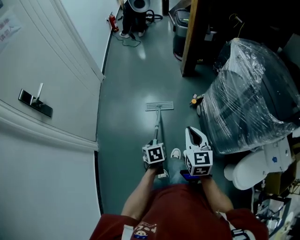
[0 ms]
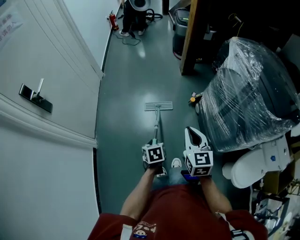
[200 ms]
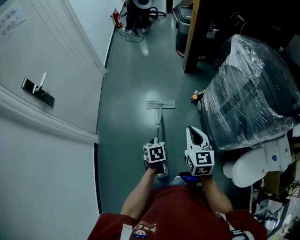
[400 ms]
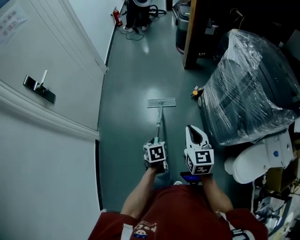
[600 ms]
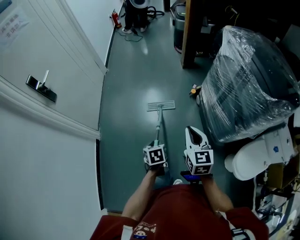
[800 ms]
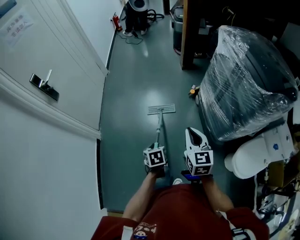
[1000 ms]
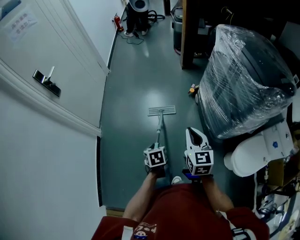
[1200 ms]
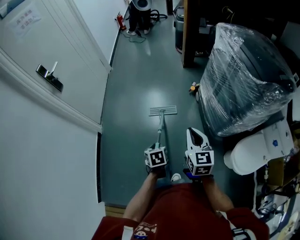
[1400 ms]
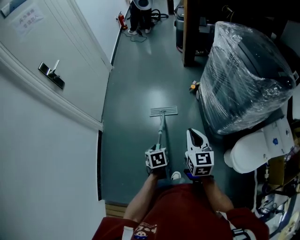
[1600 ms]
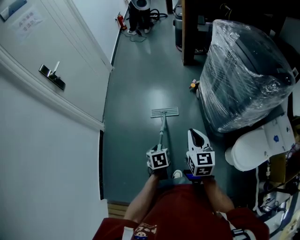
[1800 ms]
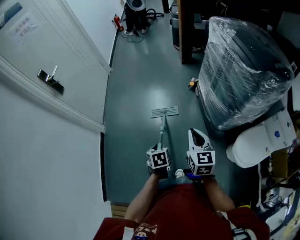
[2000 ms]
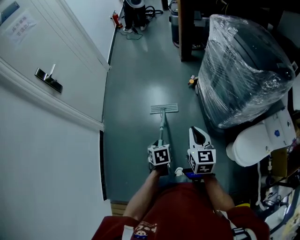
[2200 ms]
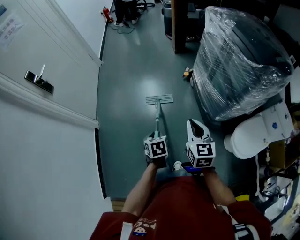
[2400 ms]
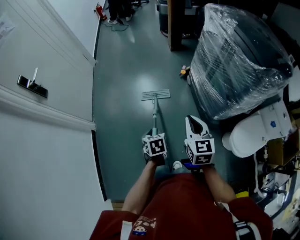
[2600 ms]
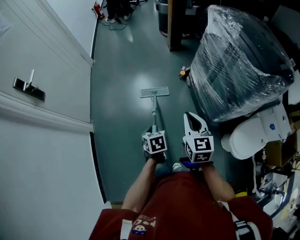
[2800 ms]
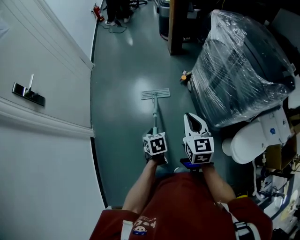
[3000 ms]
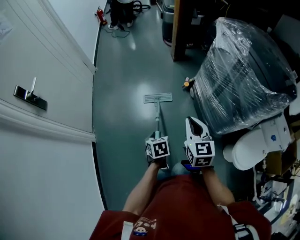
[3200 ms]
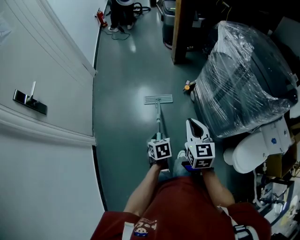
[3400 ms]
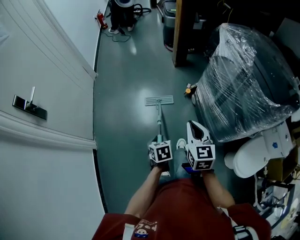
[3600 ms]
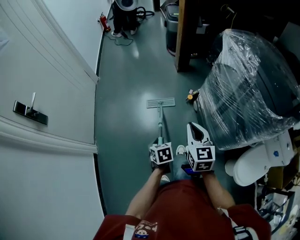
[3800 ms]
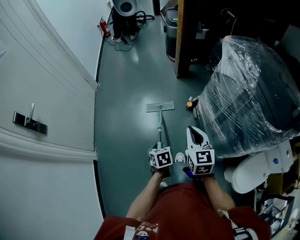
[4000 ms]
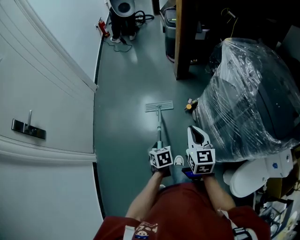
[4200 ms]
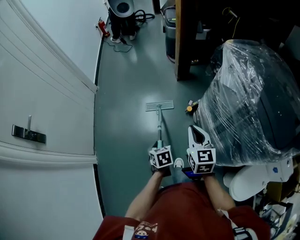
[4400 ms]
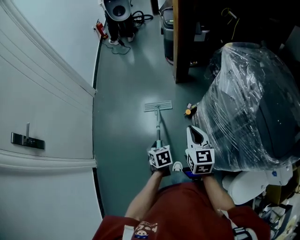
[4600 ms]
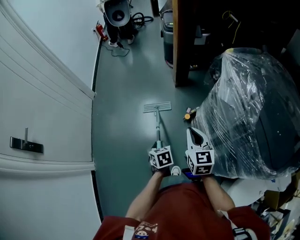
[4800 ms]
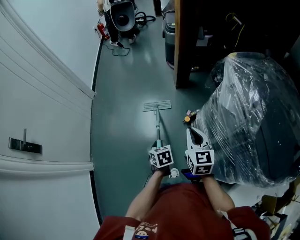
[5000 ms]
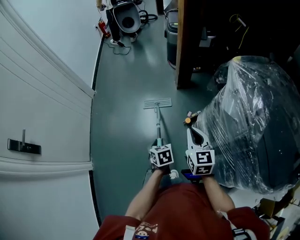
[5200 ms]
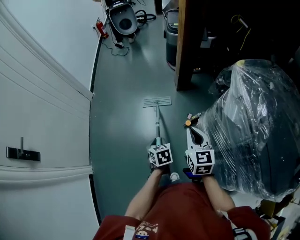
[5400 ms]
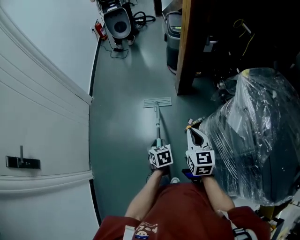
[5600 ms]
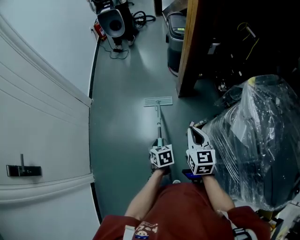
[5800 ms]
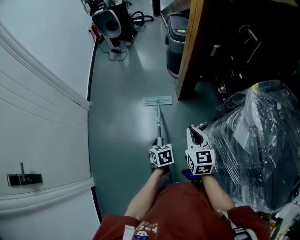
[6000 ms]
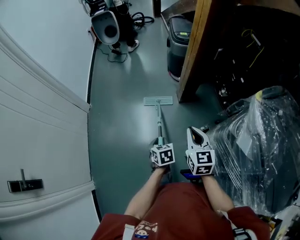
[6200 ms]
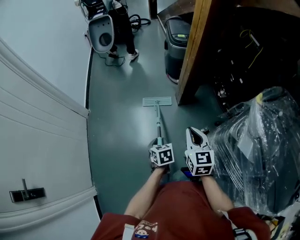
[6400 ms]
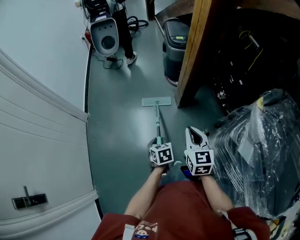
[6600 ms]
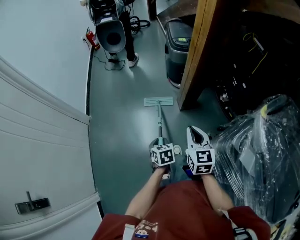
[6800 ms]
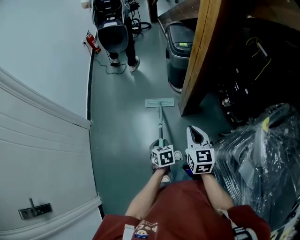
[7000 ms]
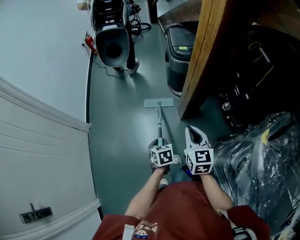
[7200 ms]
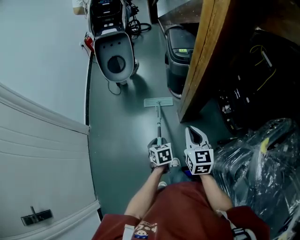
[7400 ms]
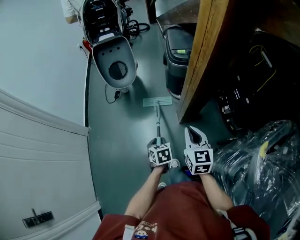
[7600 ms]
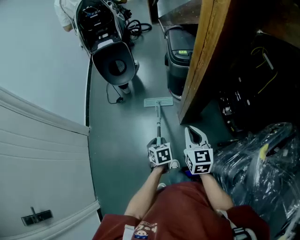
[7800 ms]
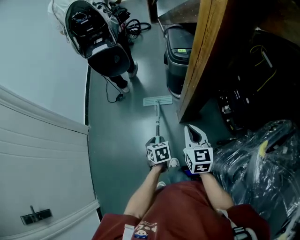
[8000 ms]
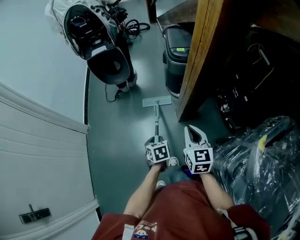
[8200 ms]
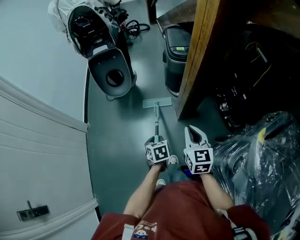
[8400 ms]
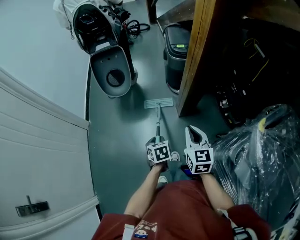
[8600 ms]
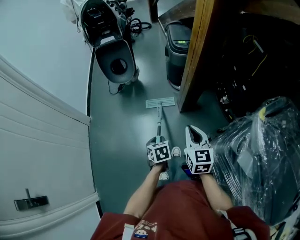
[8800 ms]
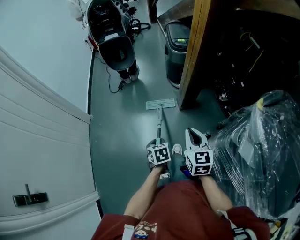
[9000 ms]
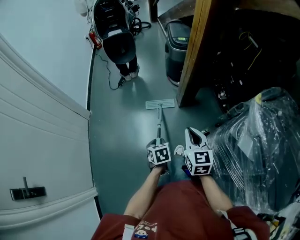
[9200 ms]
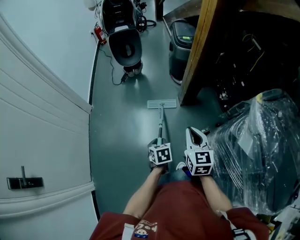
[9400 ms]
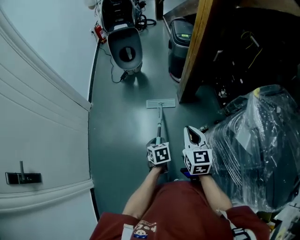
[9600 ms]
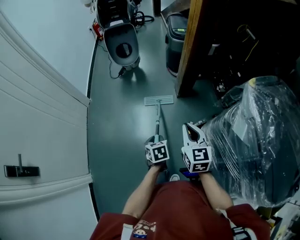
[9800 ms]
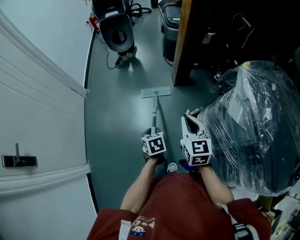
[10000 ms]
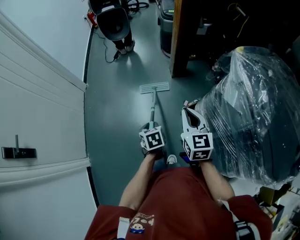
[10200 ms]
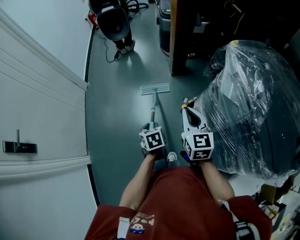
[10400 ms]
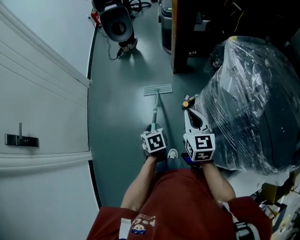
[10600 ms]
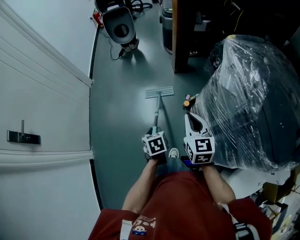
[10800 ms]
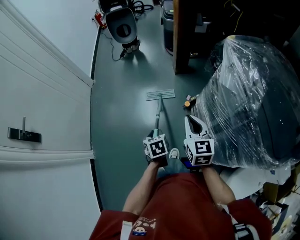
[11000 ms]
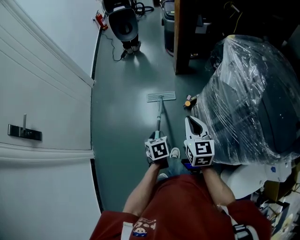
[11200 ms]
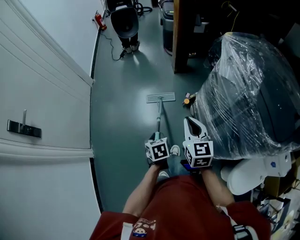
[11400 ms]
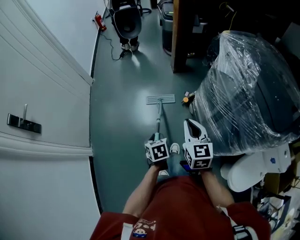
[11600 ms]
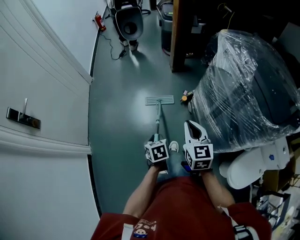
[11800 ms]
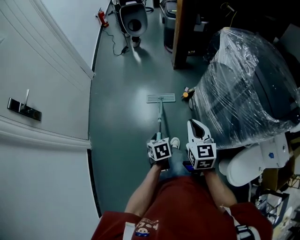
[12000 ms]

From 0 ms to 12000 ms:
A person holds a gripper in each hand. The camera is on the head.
From 0 ms to 1600 ms: Both grippers move backward, about 30 cm.
From 1600 ms to 3000 ms: The grippers both shift forward by some 20 cm.
From 3000 ms to 4400 ms: Both grippers travel together forward, about 30 cm.
From 4400 ms to 6000 ms: Both grippers move forward, approximately 35 cm.
From 6000 ms to 7600 ms: Both grippers travel together forward, roughly 35 cm.
From 7600 ms to 9000 ms: Both grippers move backward, approximately 25 cm.
From 9000 ms to 10400 ms: Both grippers move backward, about 30 cm.
From 10400 ms to 12000 ms: The two grippers go approximately 30 cm backward.

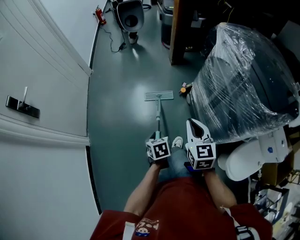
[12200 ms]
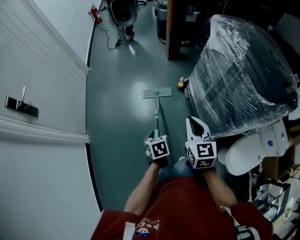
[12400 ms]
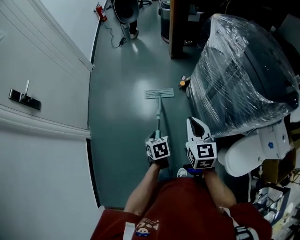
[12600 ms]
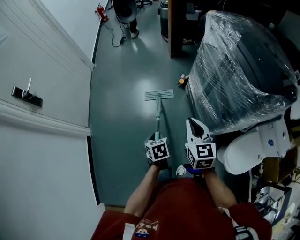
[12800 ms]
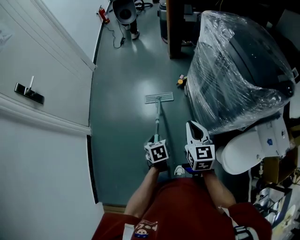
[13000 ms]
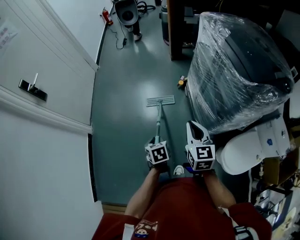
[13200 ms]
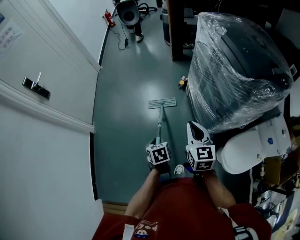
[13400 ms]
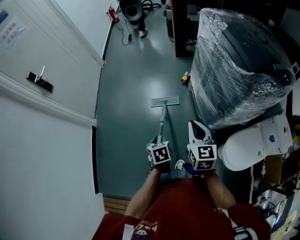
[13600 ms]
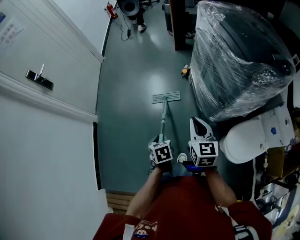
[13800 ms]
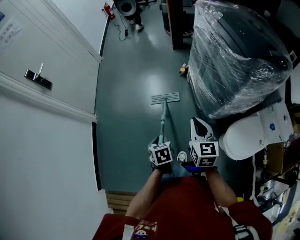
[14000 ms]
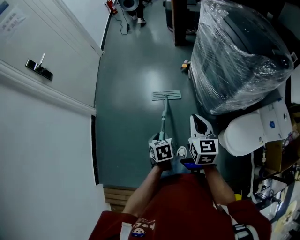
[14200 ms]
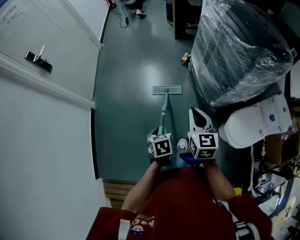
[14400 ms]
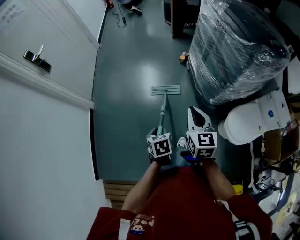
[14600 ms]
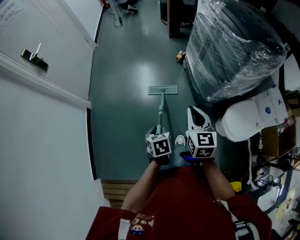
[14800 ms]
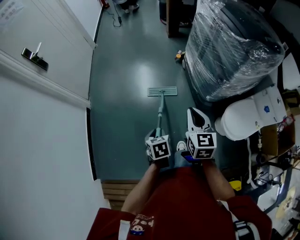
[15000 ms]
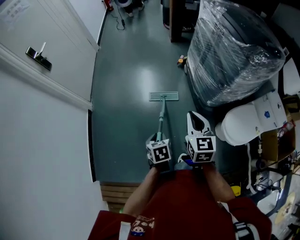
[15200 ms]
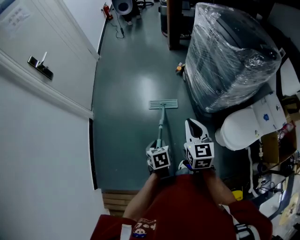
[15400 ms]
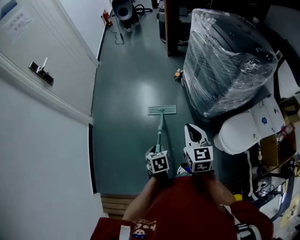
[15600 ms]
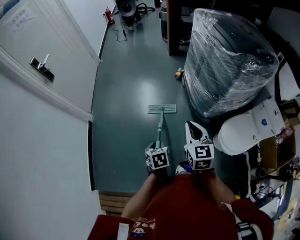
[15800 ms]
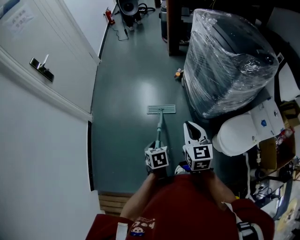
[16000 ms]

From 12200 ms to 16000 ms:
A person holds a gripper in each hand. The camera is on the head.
From 12200 ms to 13400 ms: The grippers both shift backward and to the right by about 25 cm.
From 13400 ms to 14800 ms: Both grippers travel together backward and to the left, about 20 cm.
From 14800 ms to 16000 ms: The right gripper shifts by about 5 cm. Meanwhile the left gripper shifts by roughly 5 cm.

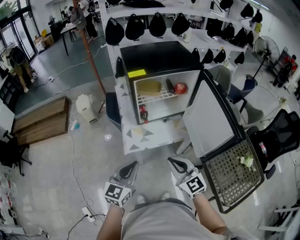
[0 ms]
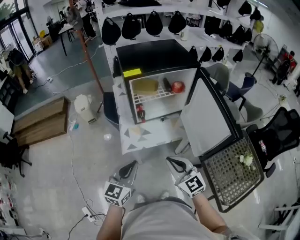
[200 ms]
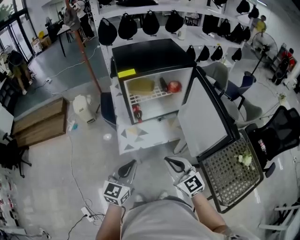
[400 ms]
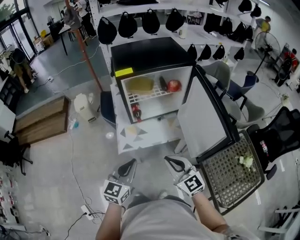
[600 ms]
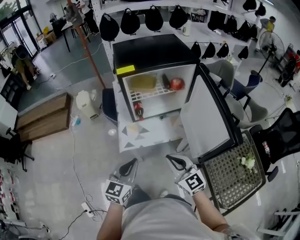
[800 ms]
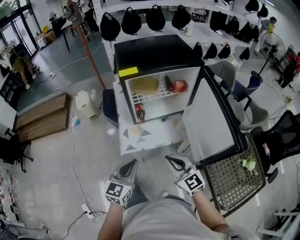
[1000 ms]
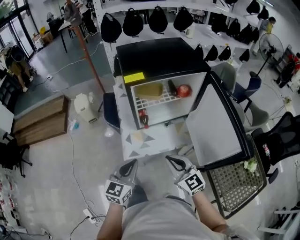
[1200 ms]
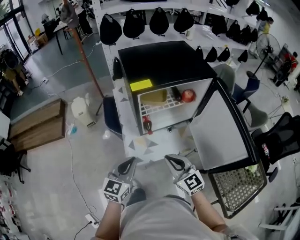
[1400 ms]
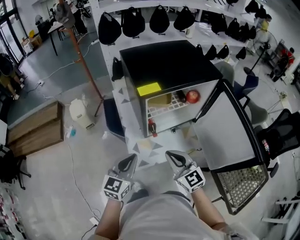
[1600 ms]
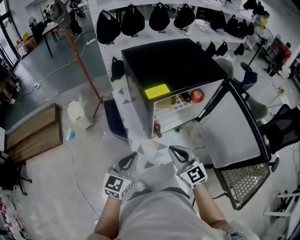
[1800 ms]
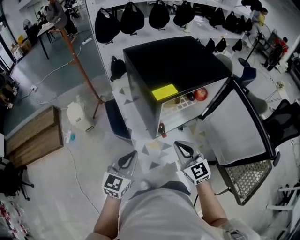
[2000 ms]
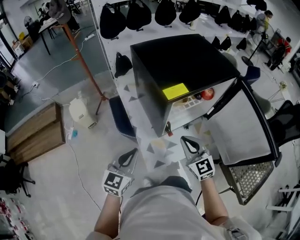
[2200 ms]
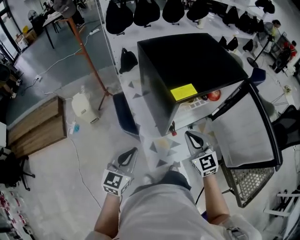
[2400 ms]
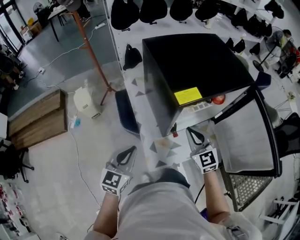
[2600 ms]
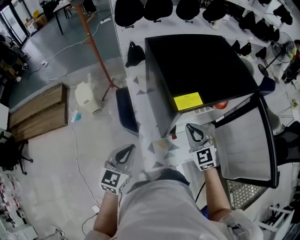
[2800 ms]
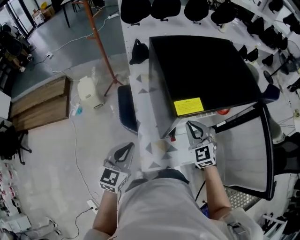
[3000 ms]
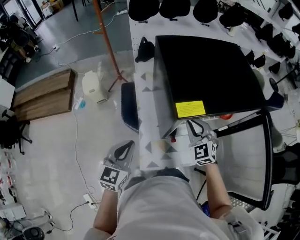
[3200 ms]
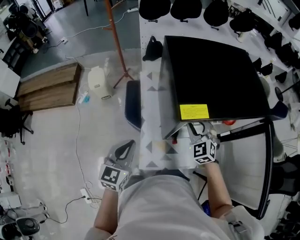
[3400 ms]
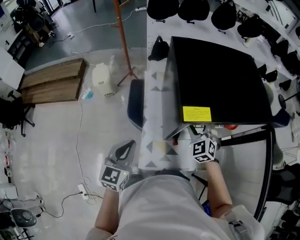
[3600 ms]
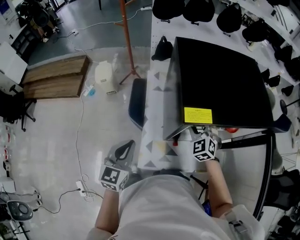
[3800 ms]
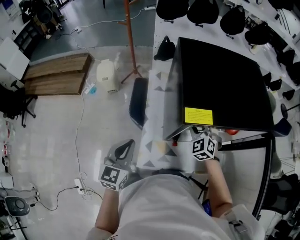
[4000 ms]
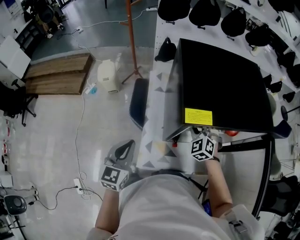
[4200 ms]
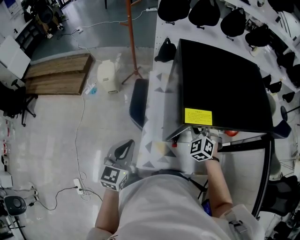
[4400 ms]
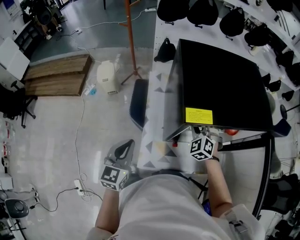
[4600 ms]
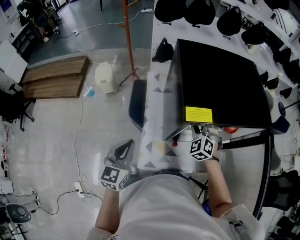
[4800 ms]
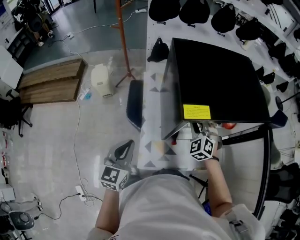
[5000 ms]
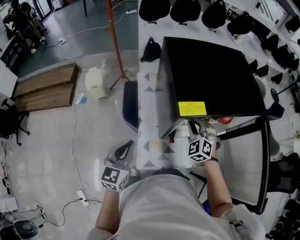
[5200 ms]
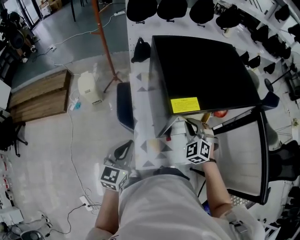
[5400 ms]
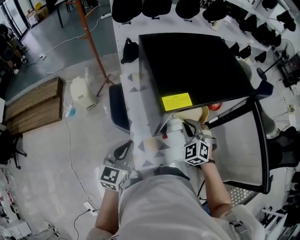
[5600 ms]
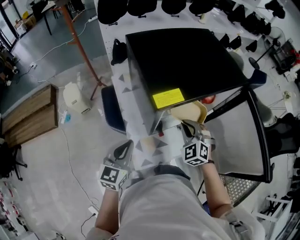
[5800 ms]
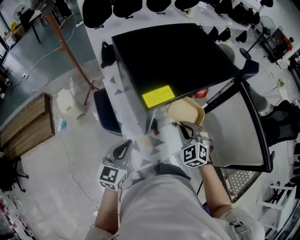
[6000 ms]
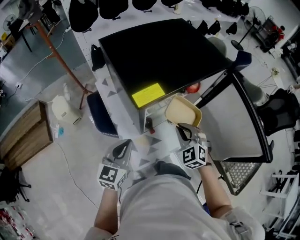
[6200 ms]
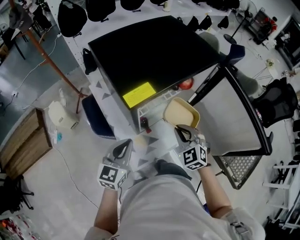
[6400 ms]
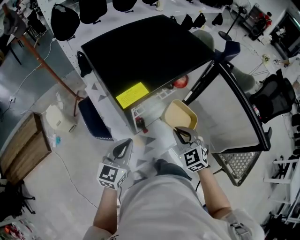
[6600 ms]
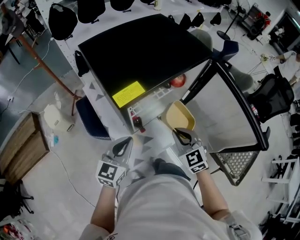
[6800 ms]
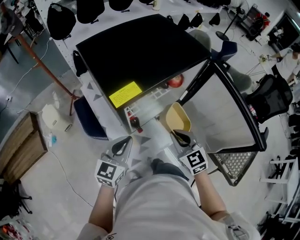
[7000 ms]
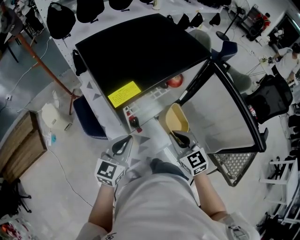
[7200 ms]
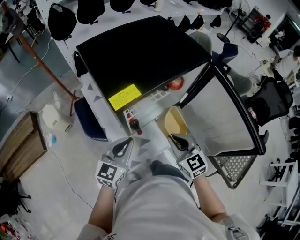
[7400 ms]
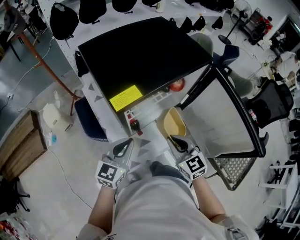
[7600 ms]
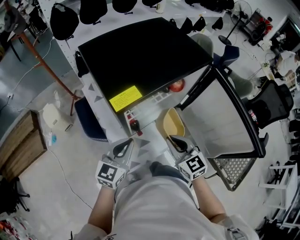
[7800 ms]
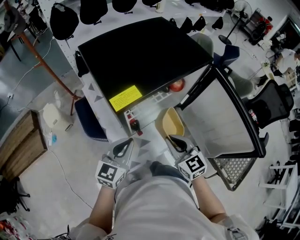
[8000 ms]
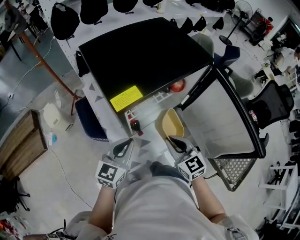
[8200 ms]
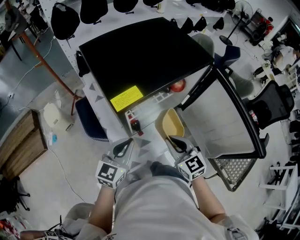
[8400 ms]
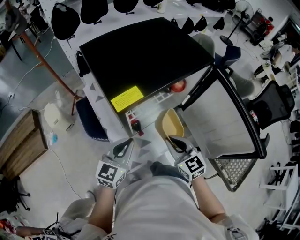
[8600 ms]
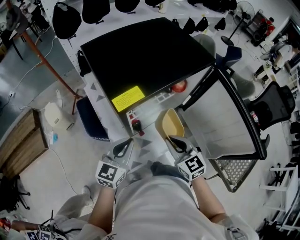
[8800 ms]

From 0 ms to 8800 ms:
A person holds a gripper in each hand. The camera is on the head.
From 0 ms to 1400 ms: The two grippers go some 15 cm forward.
From 1400 ms to 3000 ms: The right gripper shifts about 25 cm forward, and turns by some 30 degrees. The left gripper moves forward and to the left, roughly 20 cm.
From 3000 ms to 4400 ms: The right gripper travels forward and downward by roughly 10 cm, changes its angle by roughly 30 degrees, and opens.
From 4400 ms to 5800 ms: The right gripper shifts roughly 10 cm backward and to the right, and closes up, while the left gripper shifts by roughly 5 cm, and turns by some 20 degrees.
From 5800 ms to 7400 ms: The left gripper shifts approximately 10 cm to the right. The right gripper is displaced backward and to the right by about 10 cm, and rotates around the line of its fingers by roughly 40 degrees, clockwise from behind.
From 7400 ms to 8800 ms: The grippers move only a little.
